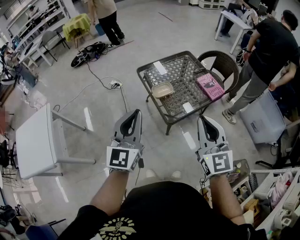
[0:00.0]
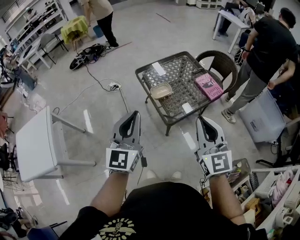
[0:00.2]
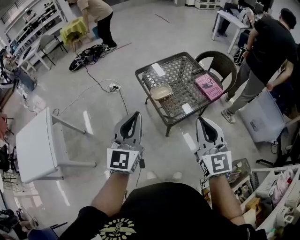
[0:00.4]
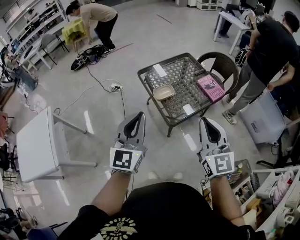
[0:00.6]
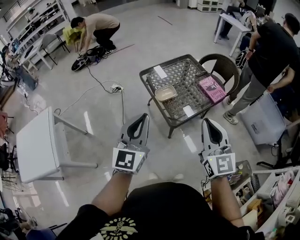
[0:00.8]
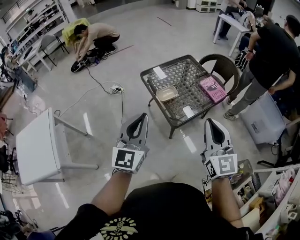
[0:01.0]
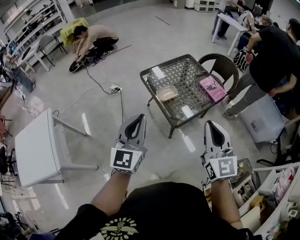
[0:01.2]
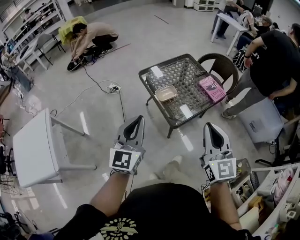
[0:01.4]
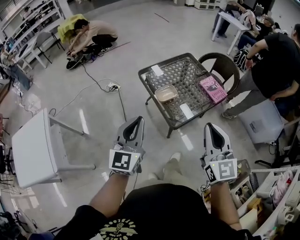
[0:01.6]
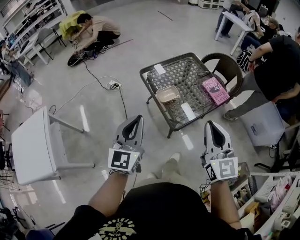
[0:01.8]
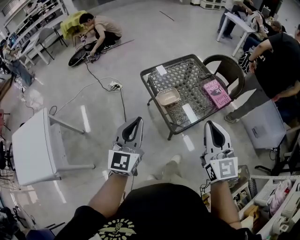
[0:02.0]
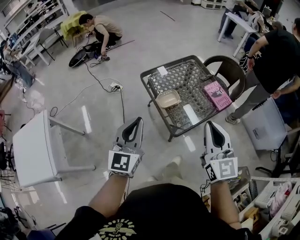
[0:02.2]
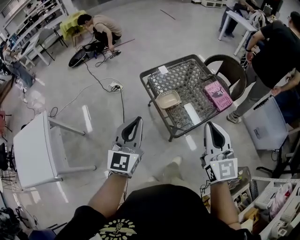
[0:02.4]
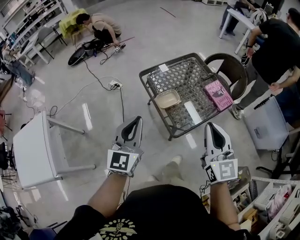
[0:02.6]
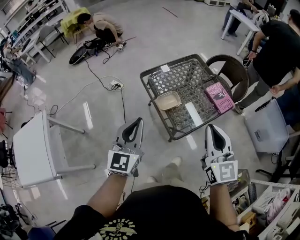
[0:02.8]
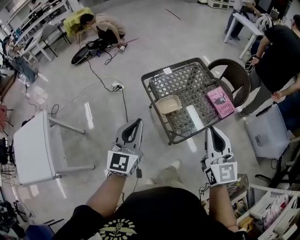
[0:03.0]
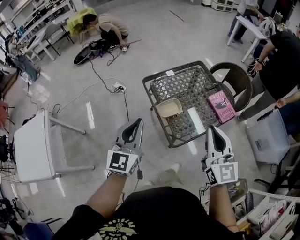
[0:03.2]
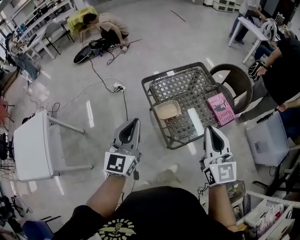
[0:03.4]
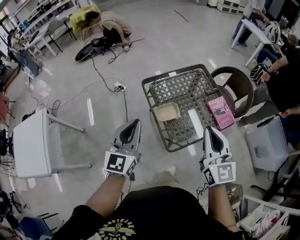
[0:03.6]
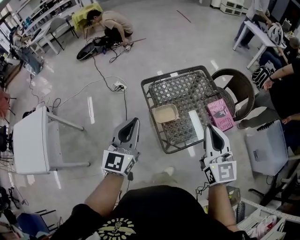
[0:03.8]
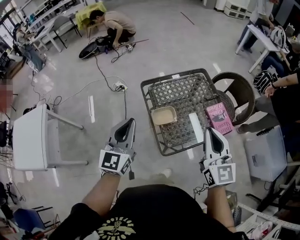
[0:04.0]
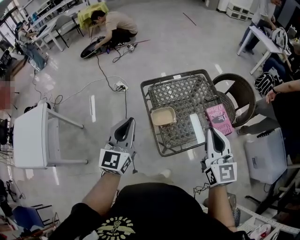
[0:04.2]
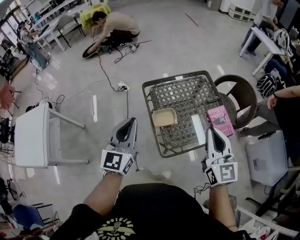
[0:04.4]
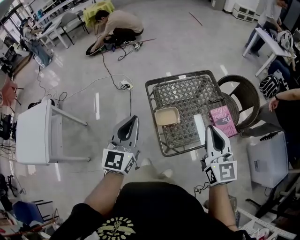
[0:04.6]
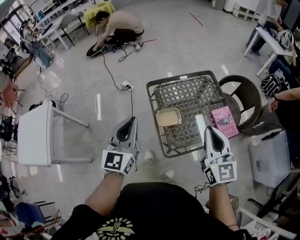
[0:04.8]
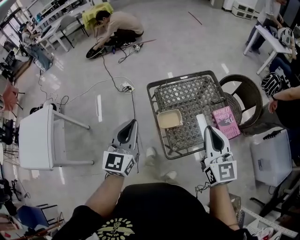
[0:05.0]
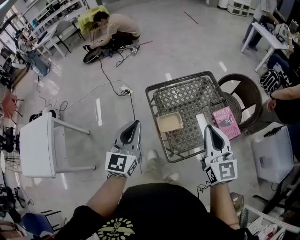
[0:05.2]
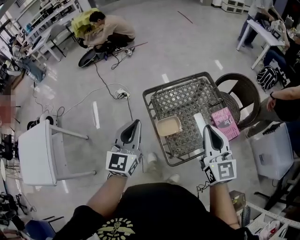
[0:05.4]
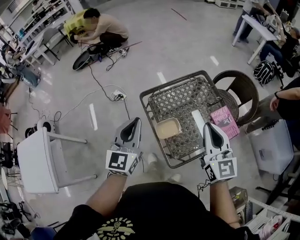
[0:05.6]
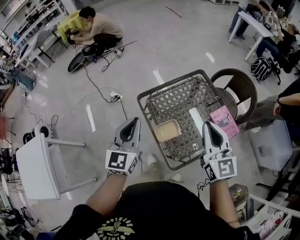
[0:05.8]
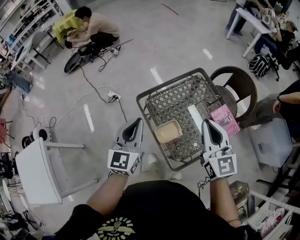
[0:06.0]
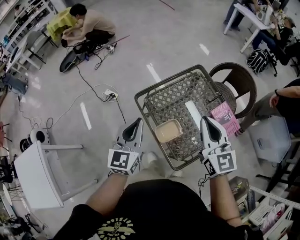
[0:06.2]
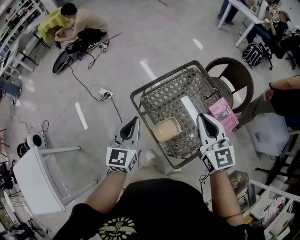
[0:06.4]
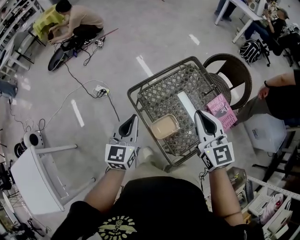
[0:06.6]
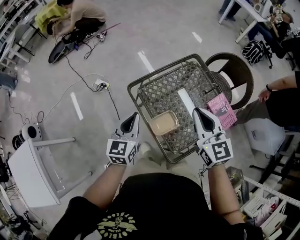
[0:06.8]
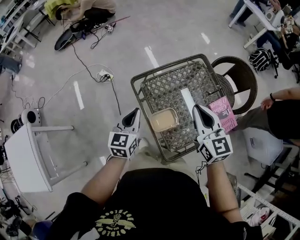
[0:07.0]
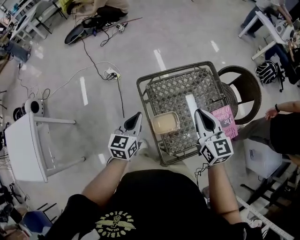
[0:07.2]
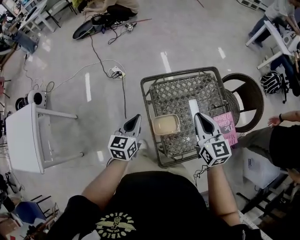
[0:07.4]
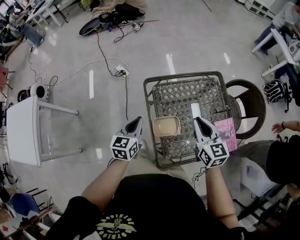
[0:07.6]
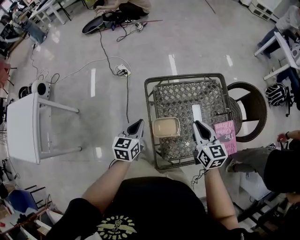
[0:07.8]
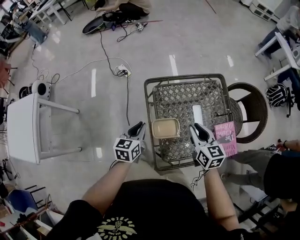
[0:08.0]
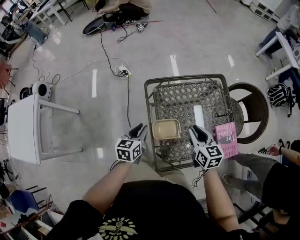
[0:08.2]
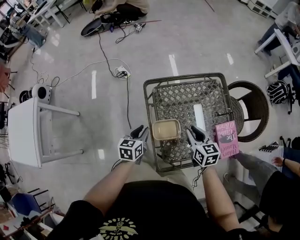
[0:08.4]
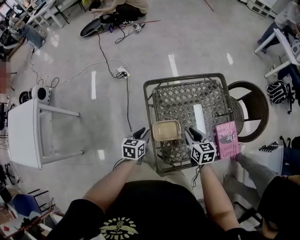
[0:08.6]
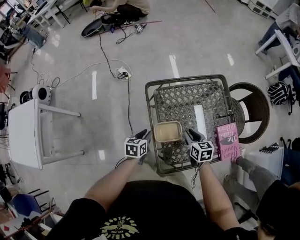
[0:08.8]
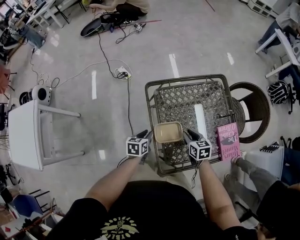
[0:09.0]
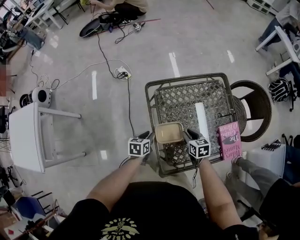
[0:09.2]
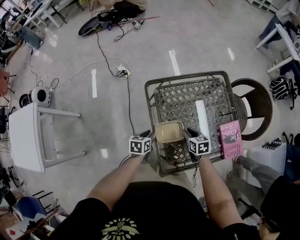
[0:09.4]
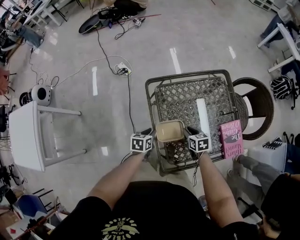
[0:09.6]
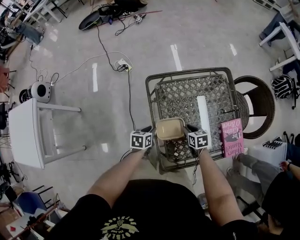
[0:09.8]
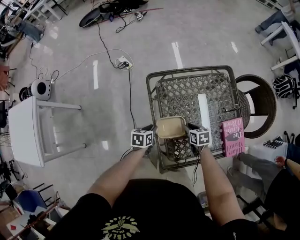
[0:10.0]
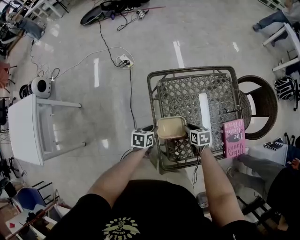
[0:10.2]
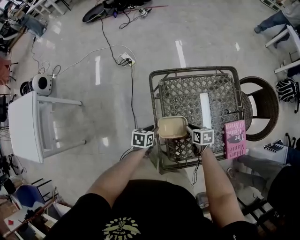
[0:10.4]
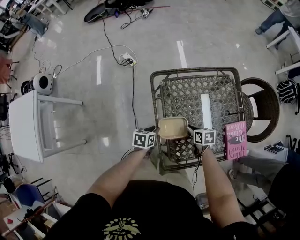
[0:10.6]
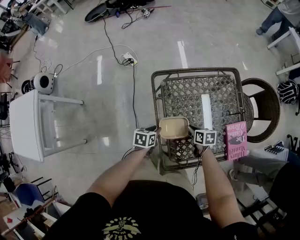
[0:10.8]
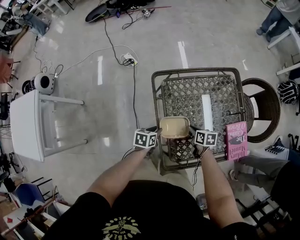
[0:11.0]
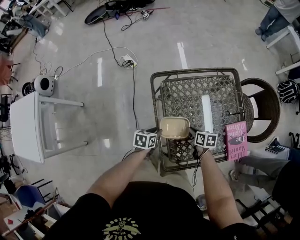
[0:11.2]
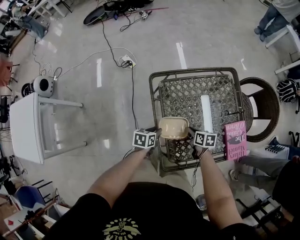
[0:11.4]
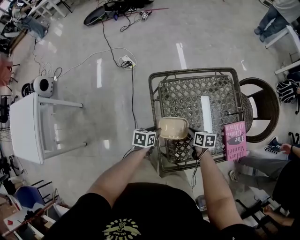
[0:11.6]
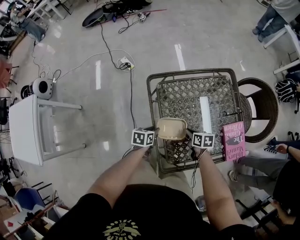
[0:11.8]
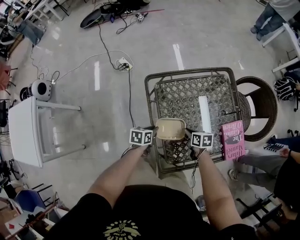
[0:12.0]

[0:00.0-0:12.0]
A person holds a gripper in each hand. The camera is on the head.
0:00.0 to 0:01.6: The left gripper is displaced to the left by roughly 5 cm.
0:01.6 to 0:03.0: Both grippers travel together forward, some 15 cm.
0:03.0 to 0:04.4: The left gripper travels forward by roughly 5 cm; the right gripper travels forward and to the right by some 15 cm.
0:04.4 to 0:06.0: The left gripper moves forward, roughly 15 cm, while the right gripper heads forward and to the left, covering about 15 cm.
0:06.0 to 0:07.6: The left gripper is displaced downward by roughly 15 cm, and changes its angle by approximately 30 degrees. The right gripper goes some 15 cm downward and forward, and changes its angle by some 30 degrees.
0:07.6 to 0:09.0: The two grippers go approximately 20 cm downward. The right gripper changes its angle by some 30 degrees, while the left gripper swivels roughly 30 degrees.
0:09.0 to 0:10.4: The left gripper goes approximately 5 cm downward, while the right gripper shifts approximately 10 cm downward.
0:10.4 to 0:12.0: There are only small adjustments of the grippers.

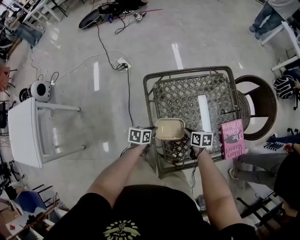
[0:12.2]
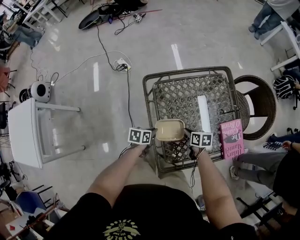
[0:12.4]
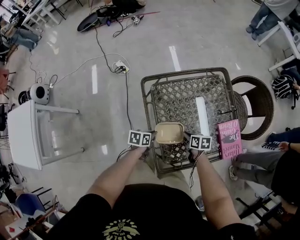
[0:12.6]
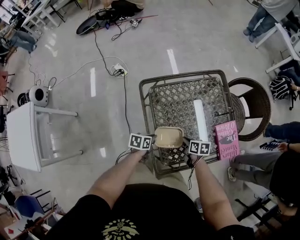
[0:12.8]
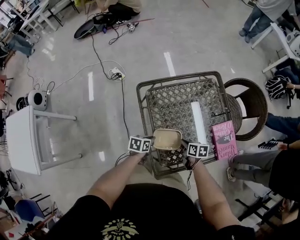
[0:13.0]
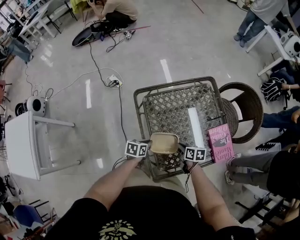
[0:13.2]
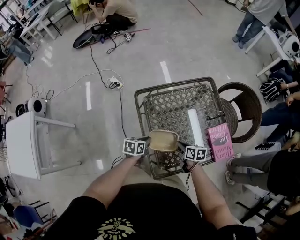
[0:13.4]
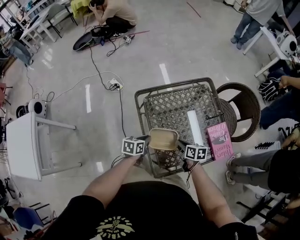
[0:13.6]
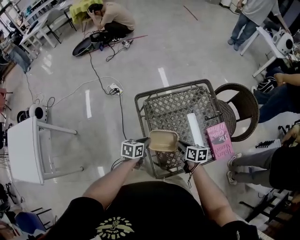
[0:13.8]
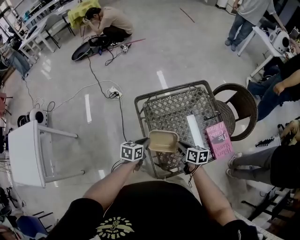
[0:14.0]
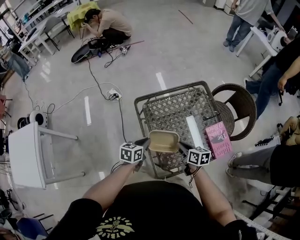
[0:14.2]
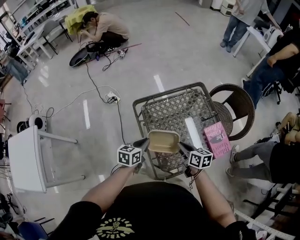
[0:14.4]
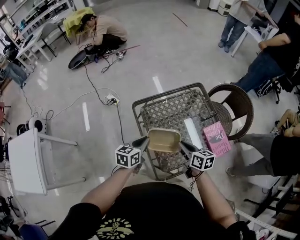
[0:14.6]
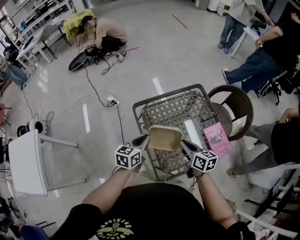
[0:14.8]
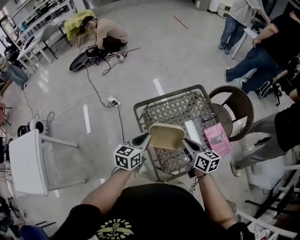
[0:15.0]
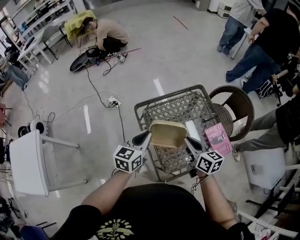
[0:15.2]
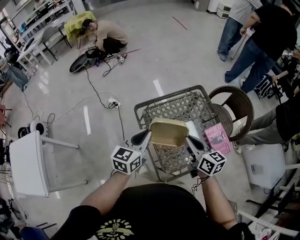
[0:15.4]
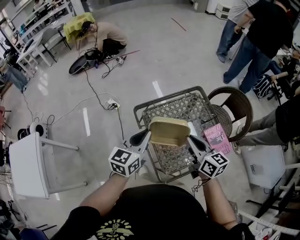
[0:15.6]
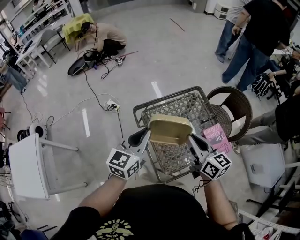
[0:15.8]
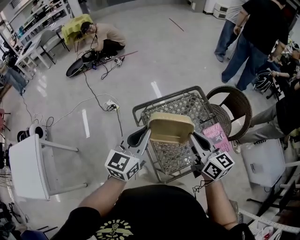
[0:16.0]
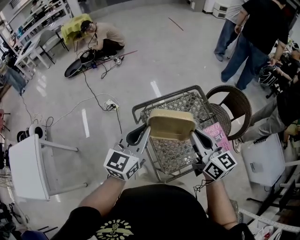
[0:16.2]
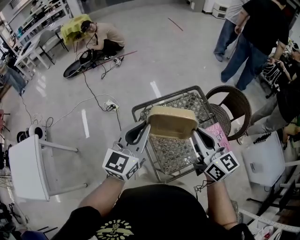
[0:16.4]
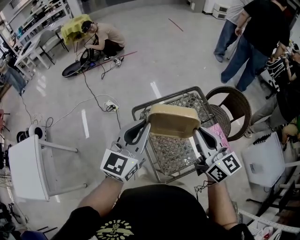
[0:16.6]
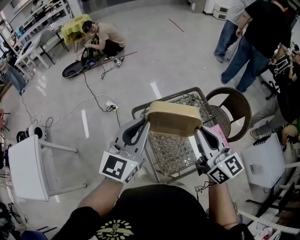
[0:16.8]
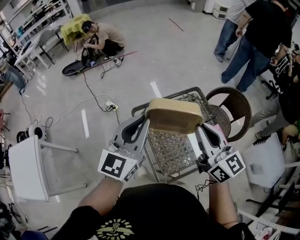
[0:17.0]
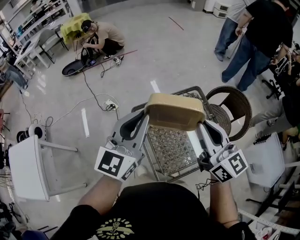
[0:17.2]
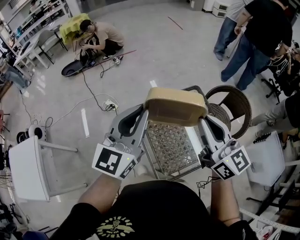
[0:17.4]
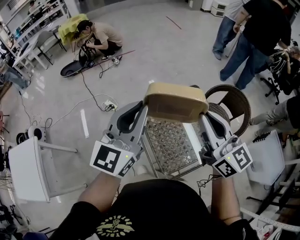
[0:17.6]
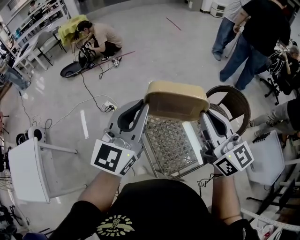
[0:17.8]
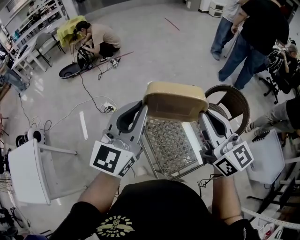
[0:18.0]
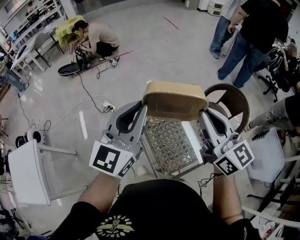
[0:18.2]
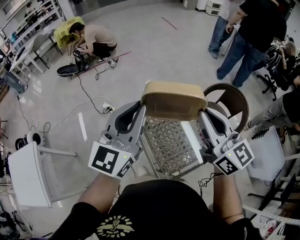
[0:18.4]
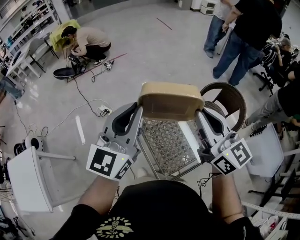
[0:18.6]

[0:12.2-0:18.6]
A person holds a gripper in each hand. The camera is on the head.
0:12.2 to 0:13.8: The grippers both shift upward by some 10 cm.
0:13.8 to 0:15.4: Both grippers travel together upward, approximately 25 cm. The right gripper changes its angle by some 30 degrees. Meanwhile the left gripper turns by some 30 degrees.
0:15.4 to 0:17.0: The grippers both shift upward by approximately 15 cm. The right gripper swivels approximately 30 degrees. Meanwhile the left gripper turns by about 30 degrees.
0:17.0 to 0:18.6: The grippers both shift upward by roughly 5 cm.

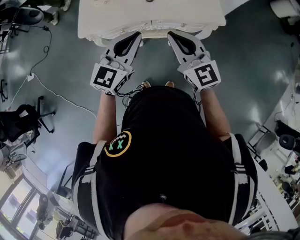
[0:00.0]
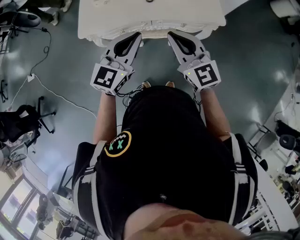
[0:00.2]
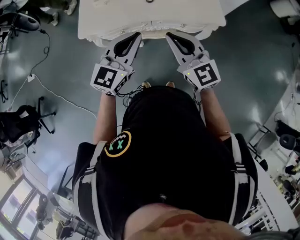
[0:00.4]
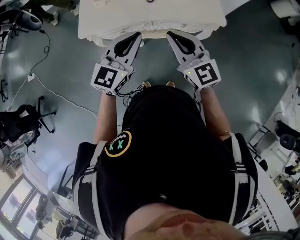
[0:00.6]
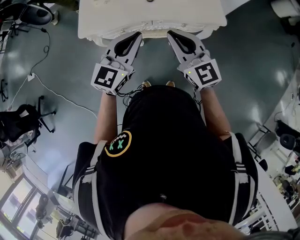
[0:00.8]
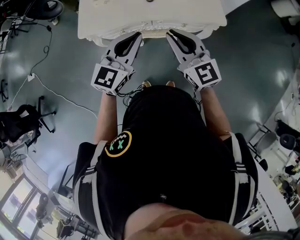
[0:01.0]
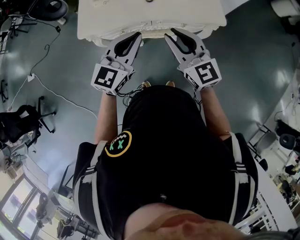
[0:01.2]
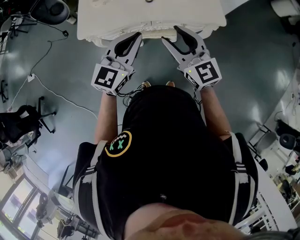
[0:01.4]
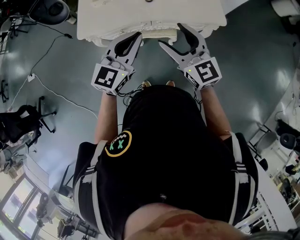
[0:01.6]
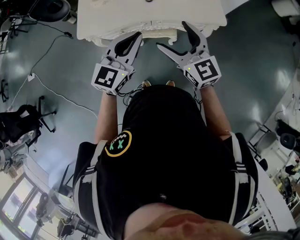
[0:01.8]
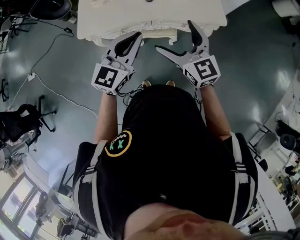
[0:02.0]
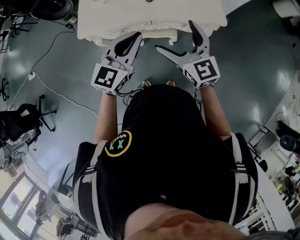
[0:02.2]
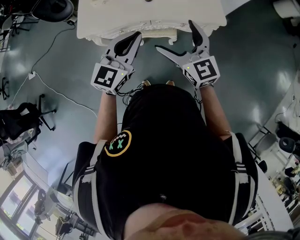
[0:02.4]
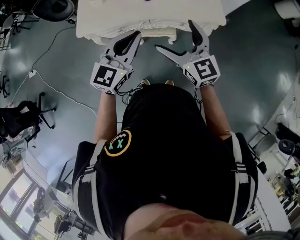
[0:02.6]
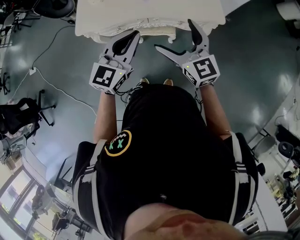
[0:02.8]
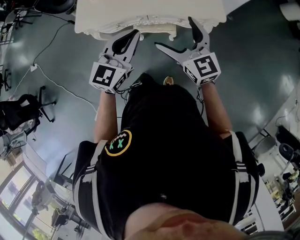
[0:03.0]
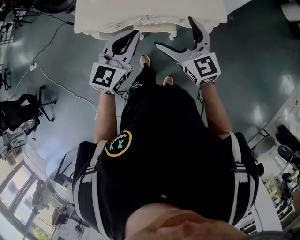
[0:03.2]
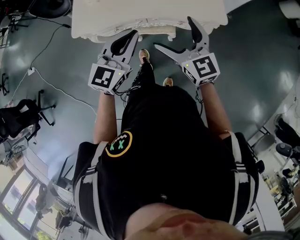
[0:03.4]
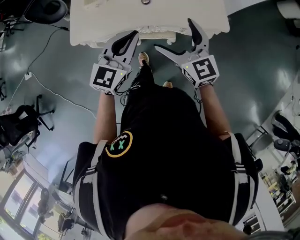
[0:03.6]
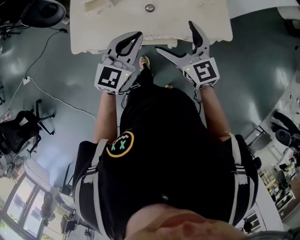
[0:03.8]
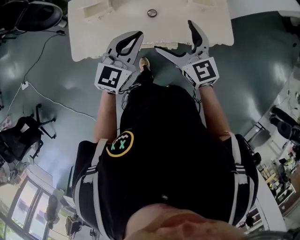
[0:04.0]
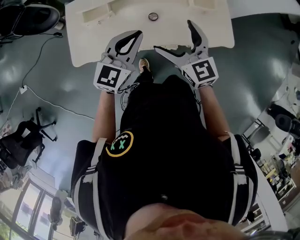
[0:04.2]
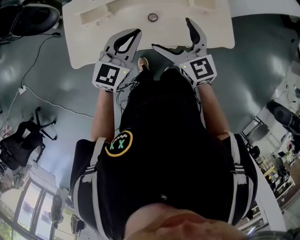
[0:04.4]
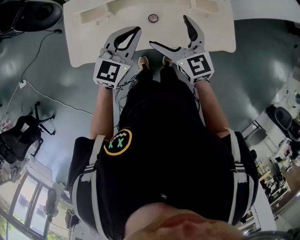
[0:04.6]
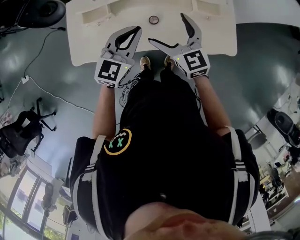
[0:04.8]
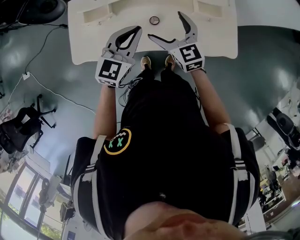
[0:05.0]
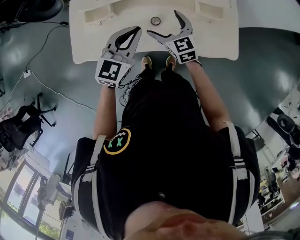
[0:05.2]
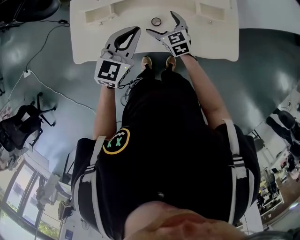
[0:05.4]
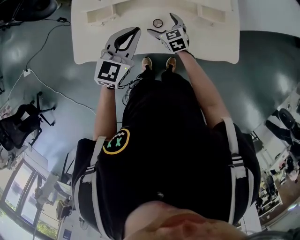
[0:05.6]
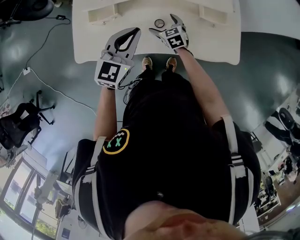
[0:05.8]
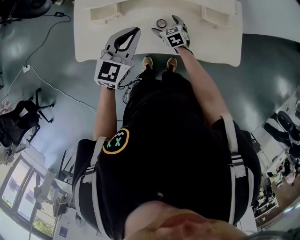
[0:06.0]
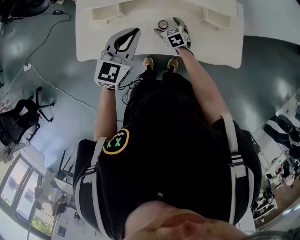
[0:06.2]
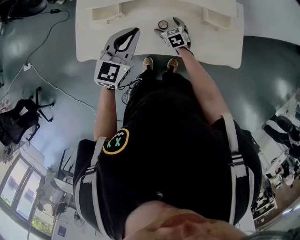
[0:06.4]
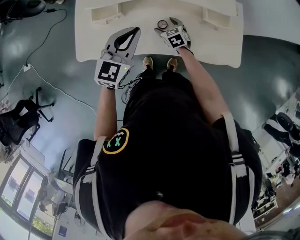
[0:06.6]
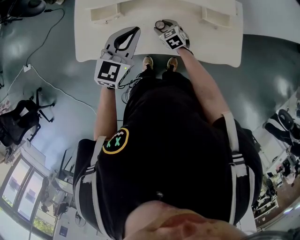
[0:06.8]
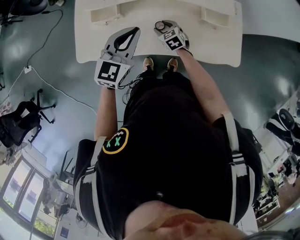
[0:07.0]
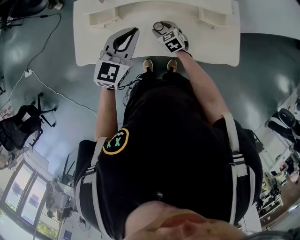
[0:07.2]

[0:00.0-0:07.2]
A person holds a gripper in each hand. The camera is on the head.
0:00.0 to 0:01.4: The right gripper opens.
0:01.4 to 0:02.8: The right gripper goes roughly 5 cm to the right, and opens.
0:02.8 to 0:04.4: Both grippers travel together forward, about 30 cm.
0:04.4 to 0:05.8: The left gripper changes place by approximately 5 cm. The right gripper goes roughly 30 cm downward and forward, and changes its angle by some 30 degrees.
0:05.8 to 0:07.2: The right gripper closes its fingers.
